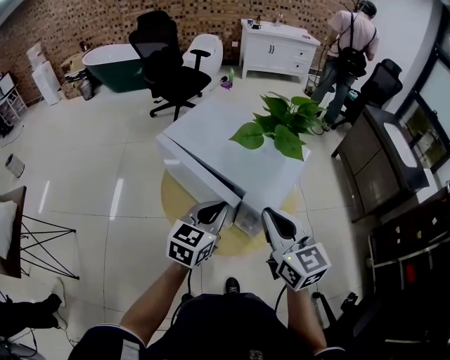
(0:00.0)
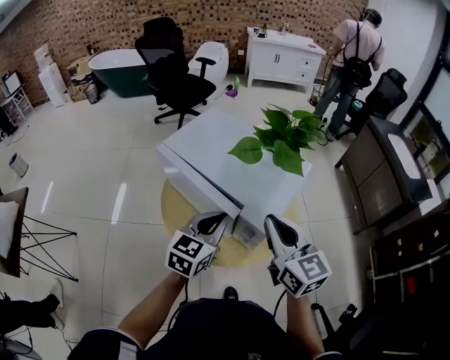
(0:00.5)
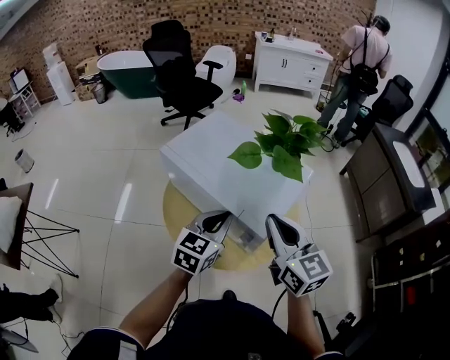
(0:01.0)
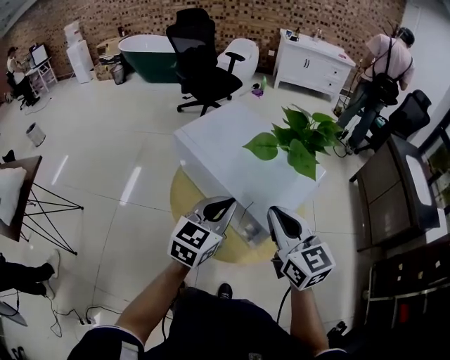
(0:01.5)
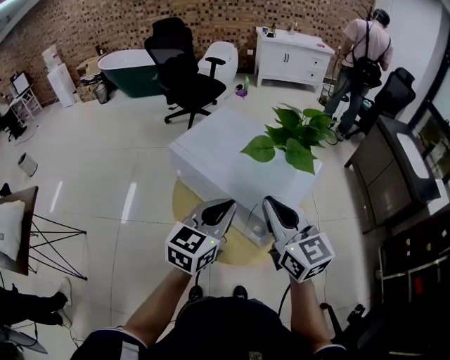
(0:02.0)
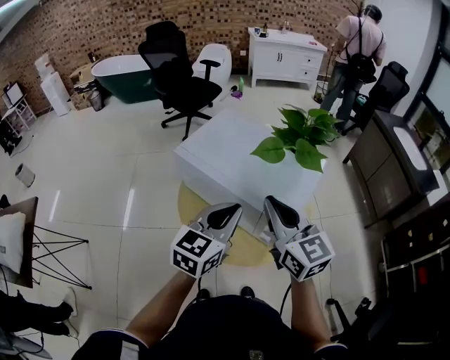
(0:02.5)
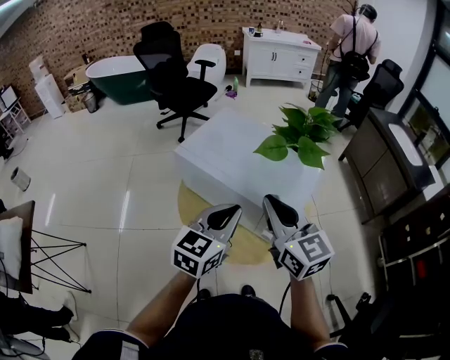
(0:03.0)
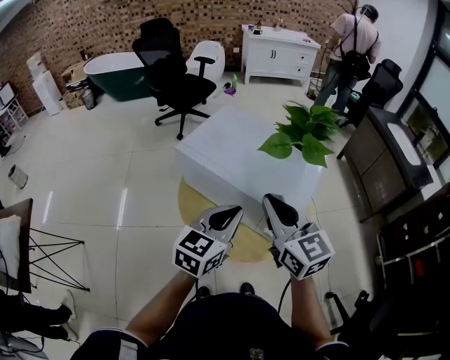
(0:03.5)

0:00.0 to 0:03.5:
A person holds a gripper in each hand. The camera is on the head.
0:00.0 to 0:02.0: The right gripper shifts by some 5 cm; the left gripper travels upward by roughly 5 cm.
0:02.0 to 0:03.5: There are only small adjustments of the grippers.

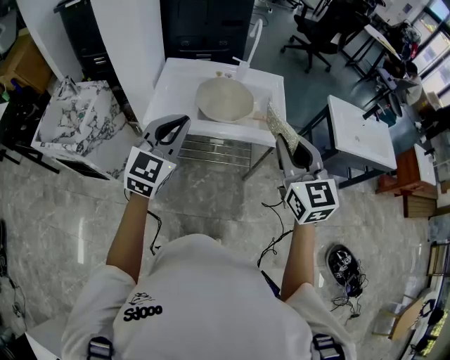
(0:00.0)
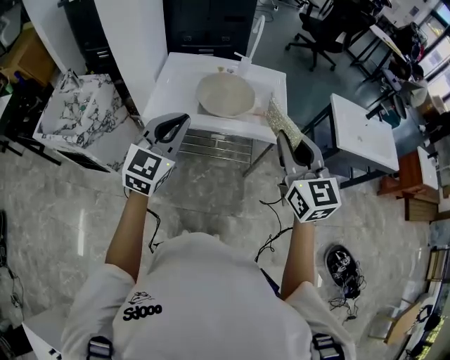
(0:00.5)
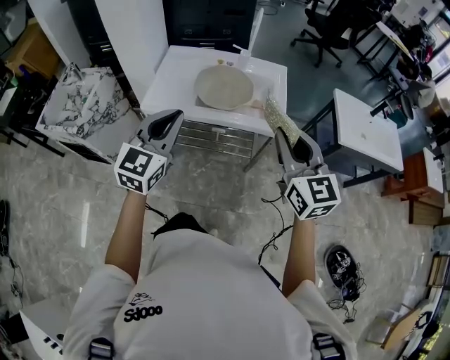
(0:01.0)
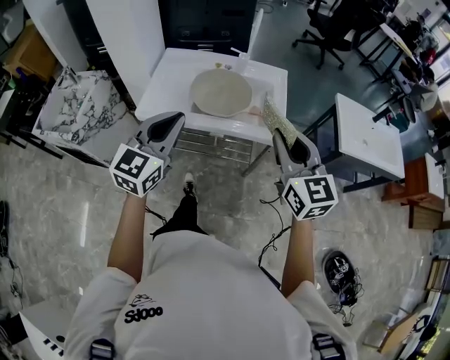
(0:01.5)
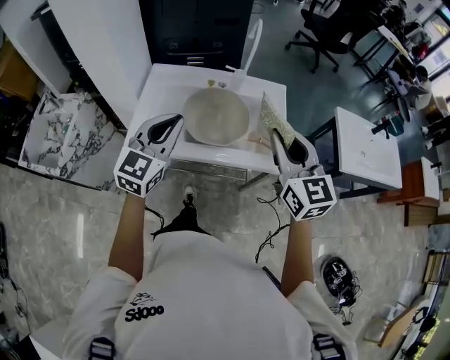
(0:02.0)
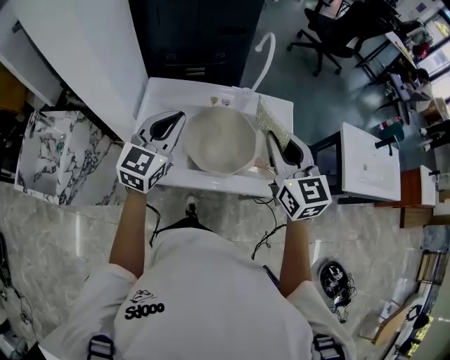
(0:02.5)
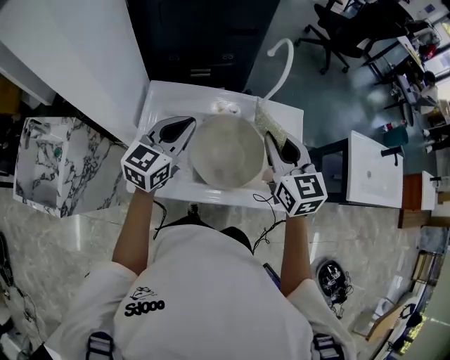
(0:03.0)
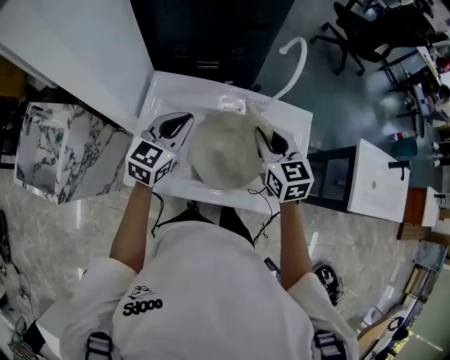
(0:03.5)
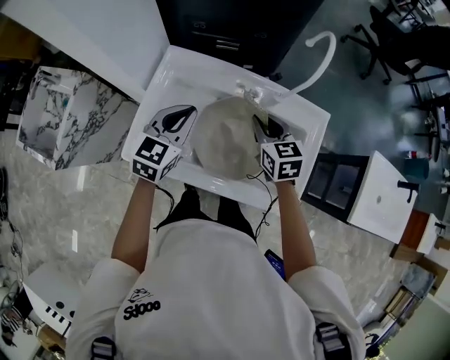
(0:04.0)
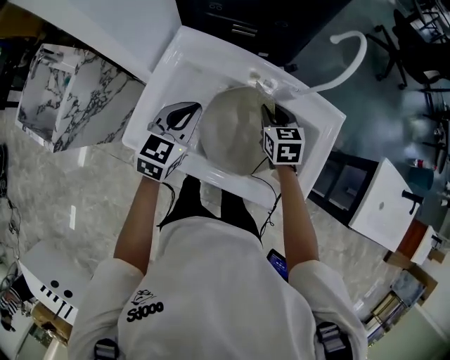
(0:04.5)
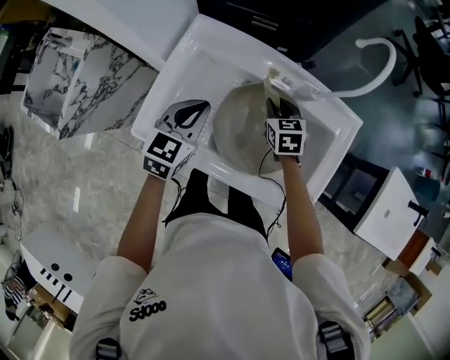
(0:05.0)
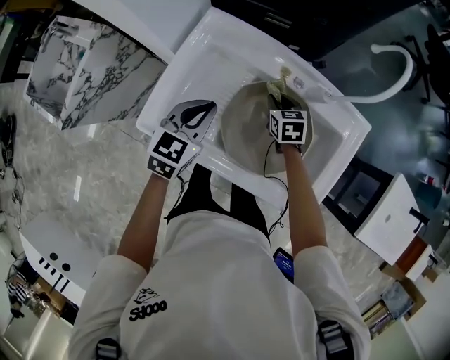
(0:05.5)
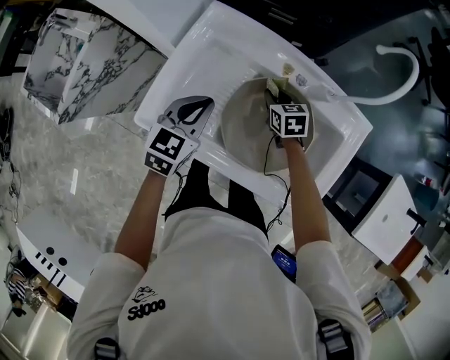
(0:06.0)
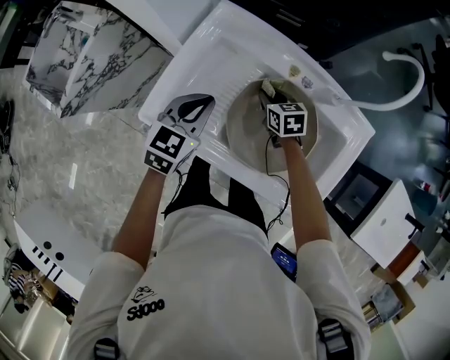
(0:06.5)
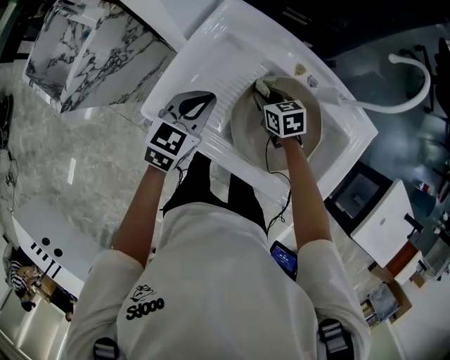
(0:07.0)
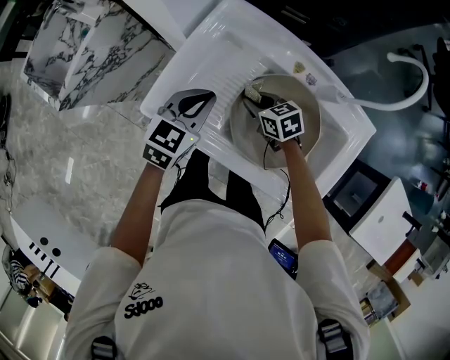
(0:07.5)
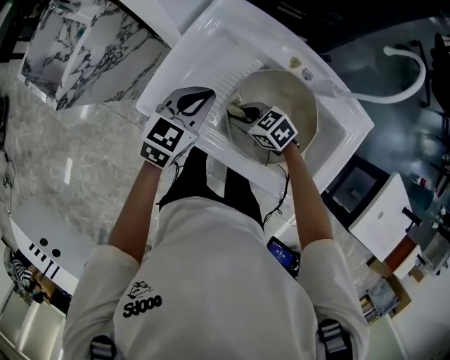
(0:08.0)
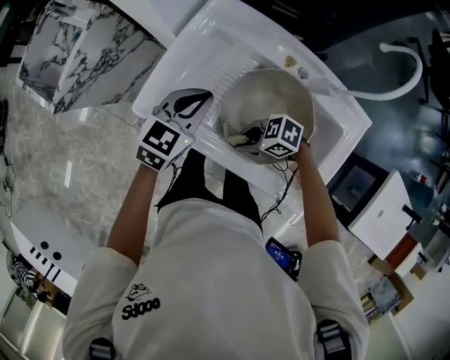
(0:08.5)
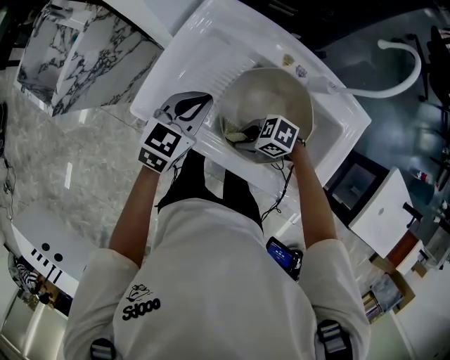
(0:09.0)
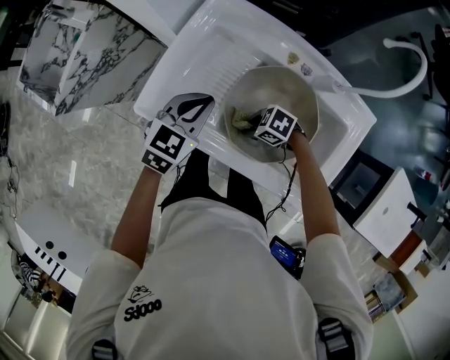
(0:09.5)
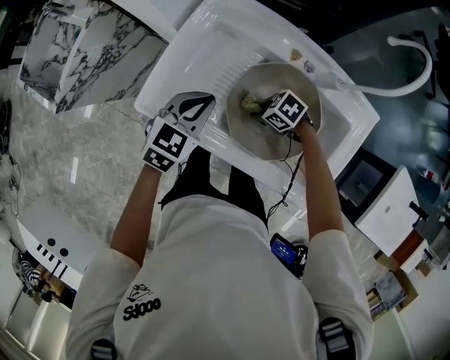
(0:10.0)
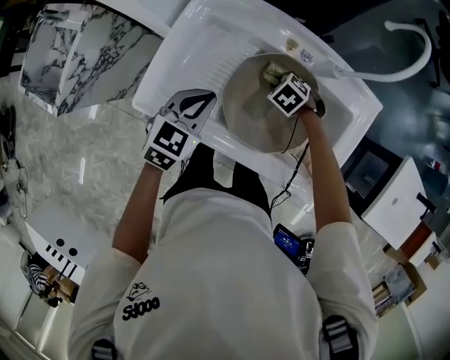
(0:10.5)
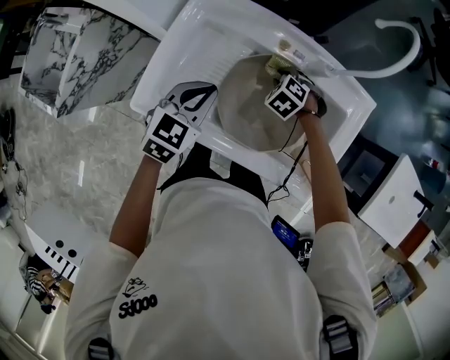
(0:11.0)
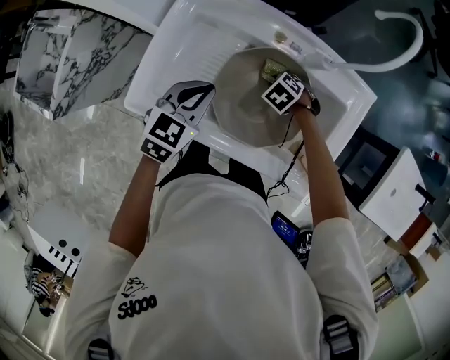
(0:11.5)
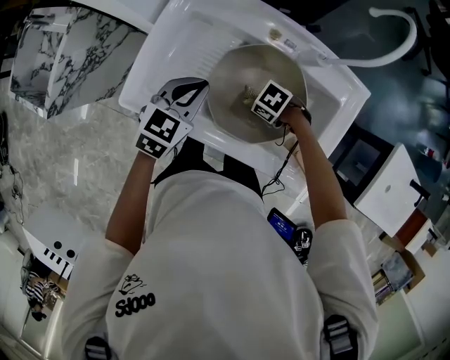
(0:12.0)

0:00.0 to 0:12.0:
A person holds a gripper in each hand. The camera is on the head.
0:00.0 to 0:02.0: The grippers both shift forward by some 15 cm.
0:02.0 to 0:04.0: The left gripper travels forward and downward by some 25 cm, and rotates about 20 degrees. Meanwhile the right gripper travels forward and downward by about 35 cm, and swivels some 30 degrees.
0:04.0 to 0:06.0: The left gripper travels downward by about 10 cm. The right gripper is displaced downward by roughly 20 cm.
0:06.0 to 0:08.0: The right gripper changes place by approximately 20 cm, and swivels about 40 degrees.
0:08.0 to 0:10.0: The right gripper changes place by approximately 10 cm, and changes its angle by approximately 20 degrees.

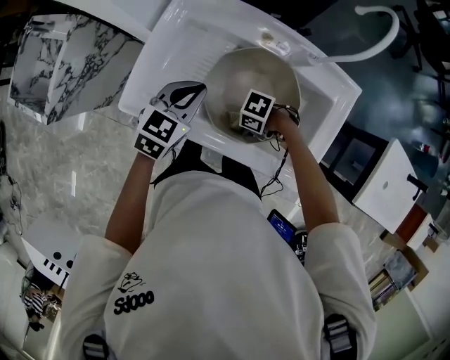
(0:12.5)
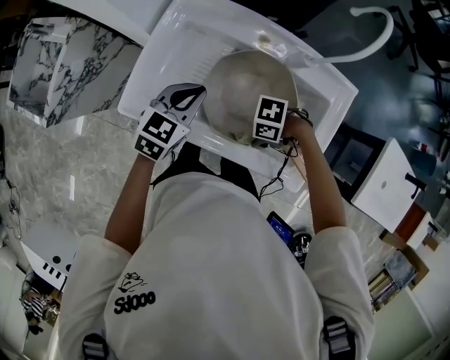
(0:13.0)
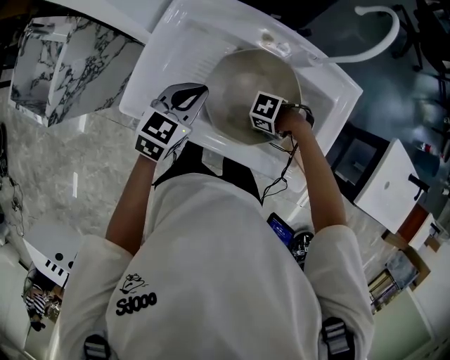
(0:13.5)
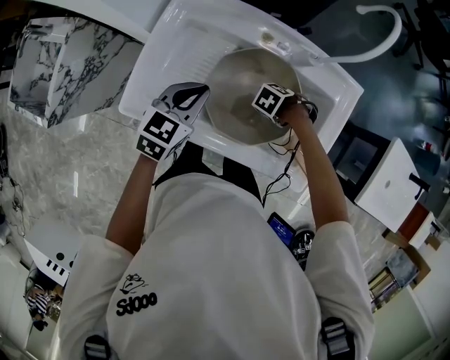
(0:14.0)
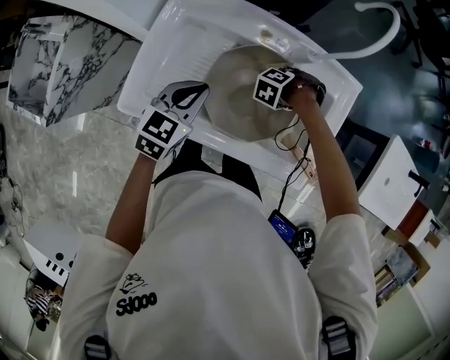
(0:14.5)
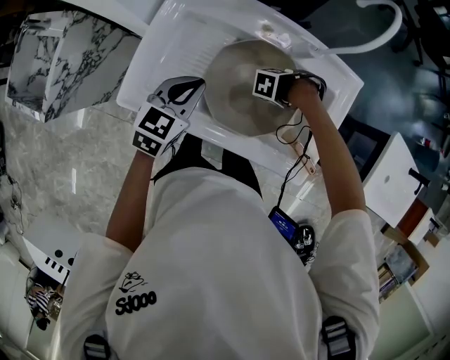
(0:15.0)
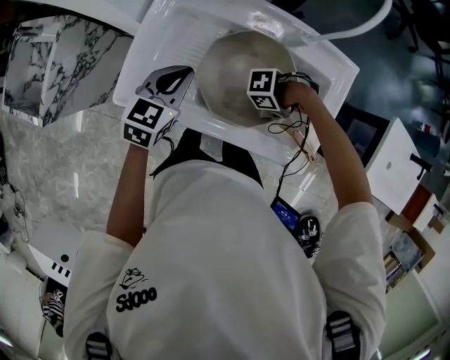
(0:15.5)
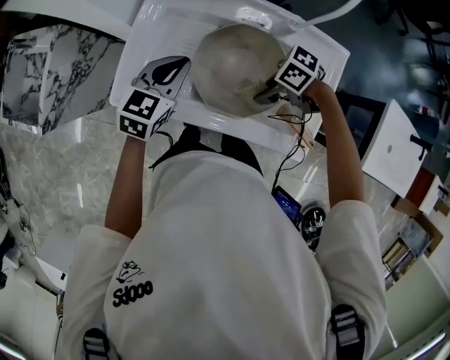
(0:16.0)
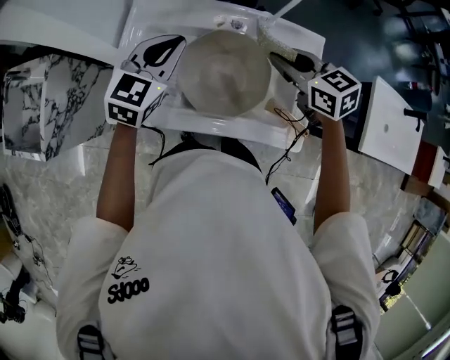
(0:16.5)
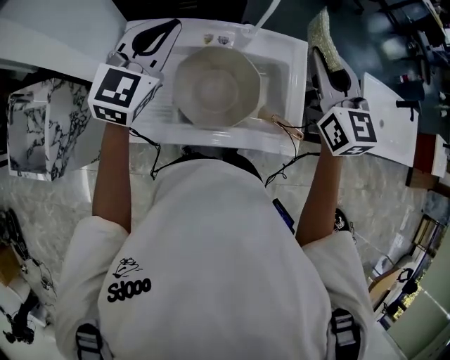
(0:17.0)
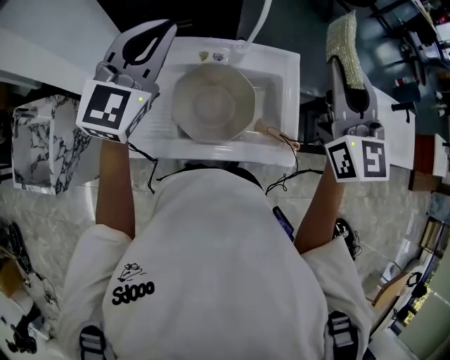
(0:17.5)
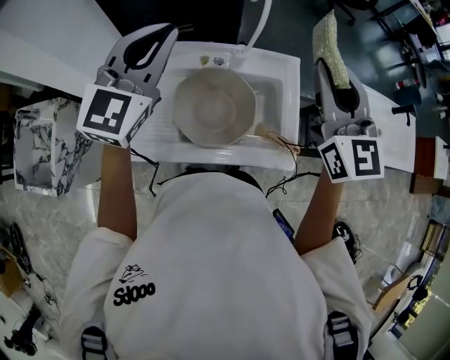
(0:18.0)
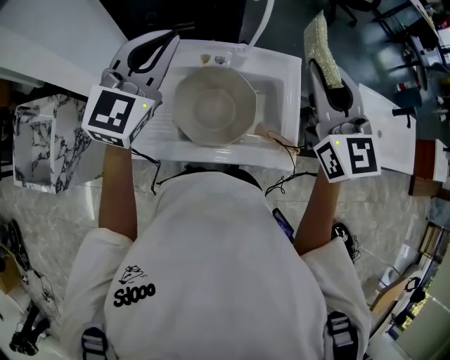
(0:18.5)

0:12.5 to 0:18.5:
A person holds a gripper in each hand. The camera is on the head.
0:12.5 to 0:14.5: The right gripper reaches about 5 cm upward, then returns, and turns by about 50 degrees.
0:14.5 to 0:16.5: The left gripper goes about 10 cm upward. The right gripper moves upward, approximately 25 cm, and points its fingers approximately 50 degrees further upward.
0:16.5 to 0:18.5: The two grippers go approximately 20 cm upward. The left gripper turns by approximately 20 degrees. The right gripper tilts its fingers roughly 30 degrees upward.

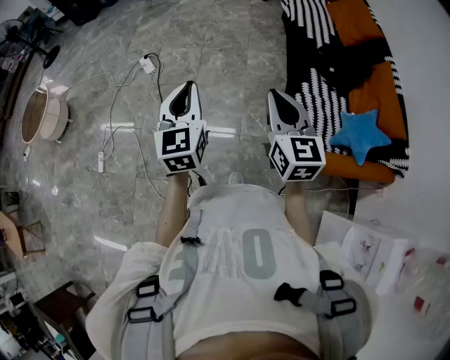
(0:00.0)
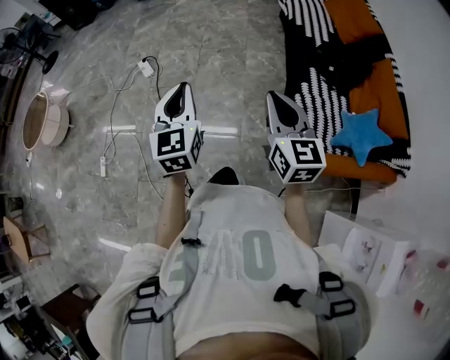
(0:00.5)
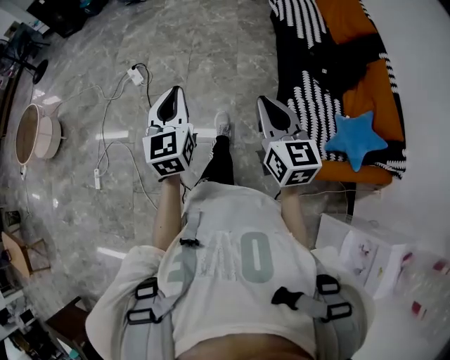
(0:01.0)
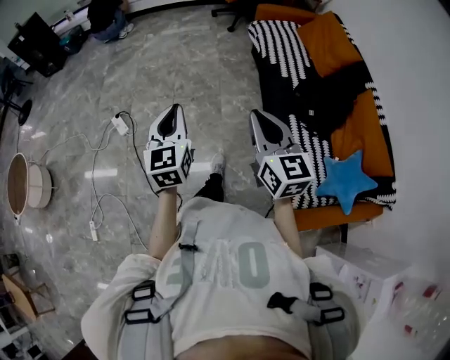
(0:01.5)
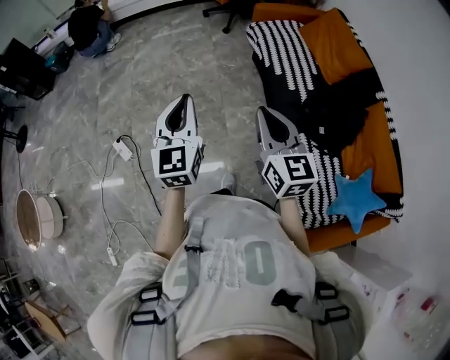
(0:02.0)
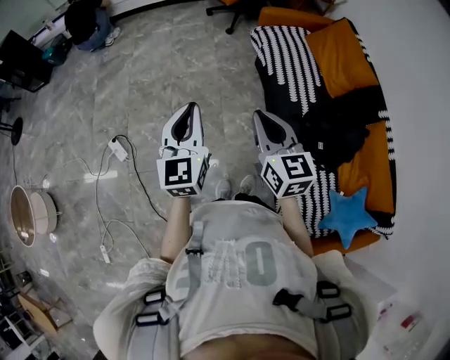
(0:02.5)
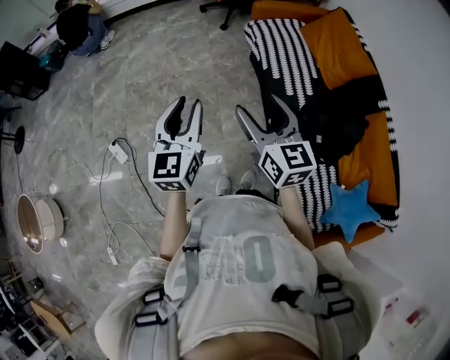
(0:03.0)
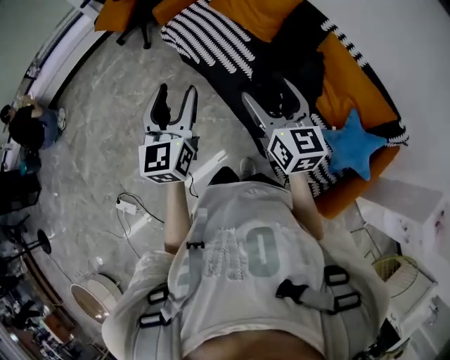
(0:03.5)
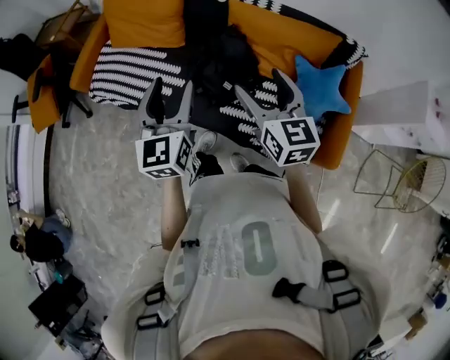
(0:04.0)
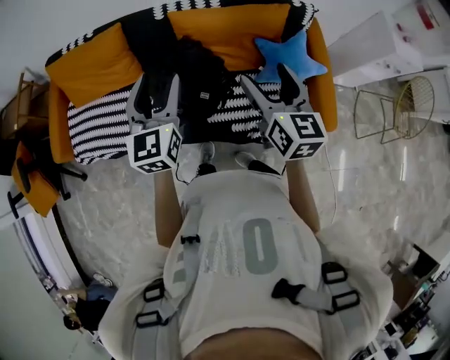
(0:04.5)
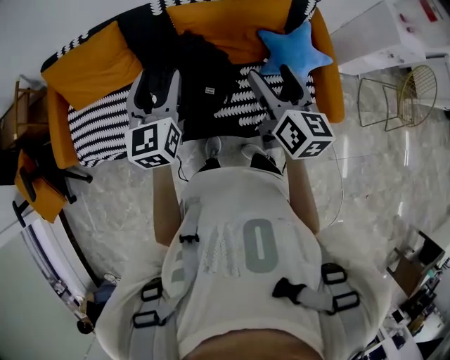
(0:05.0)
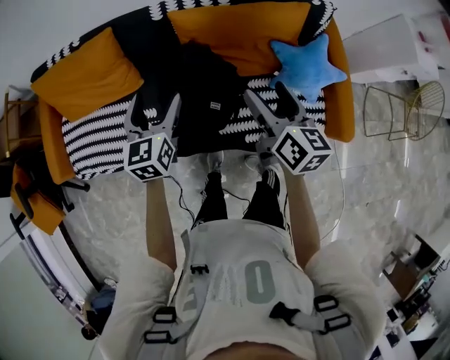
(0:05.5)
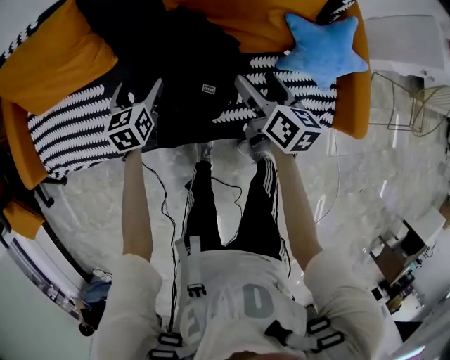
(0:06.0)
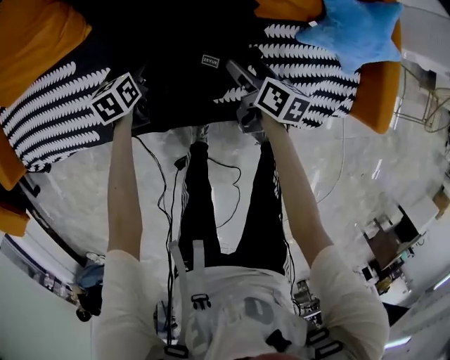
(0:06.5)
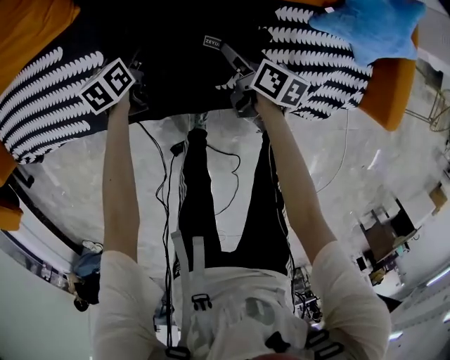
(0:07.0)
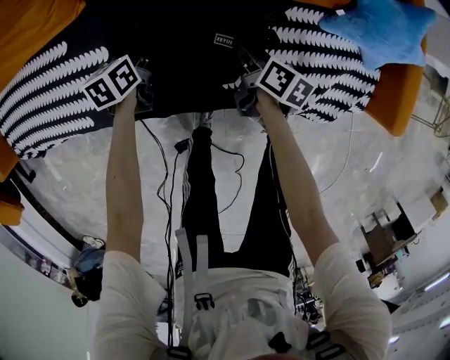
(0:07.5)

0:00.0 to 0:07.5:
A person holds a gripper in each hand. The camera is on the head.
0:00.0 to 0:02.0: Both grippers are carried forward, roughly 50 cm.
0:02.0 to 0:04.0: The pair of grippers is taken roughly 50 cm. The right gripper swivels approximately 60 degrees, and opens, while the left gripper rotates about 60 degrees, and opens up.
0:04.0 to 0:05.5: The right gripper shifts by approximately 15 cm, and turns by roughly 40 degrees; the left gripper changes place by about 30 cm, and rotates roughly 30 degrees.
0:05.5 to 0:07.5: Both grippers travel together downward, some 50 cm. The left gripper rotates approximately 40 degrees, and closes. Meanwhile the right gripper turns by some 40 degrees, and closes its fingers.
